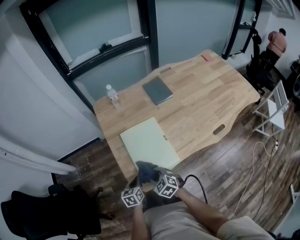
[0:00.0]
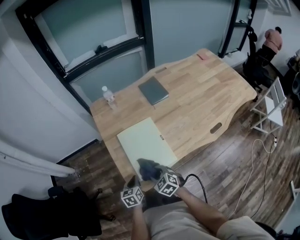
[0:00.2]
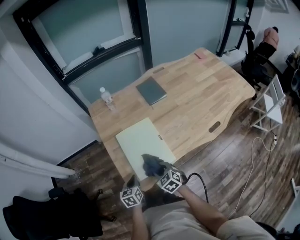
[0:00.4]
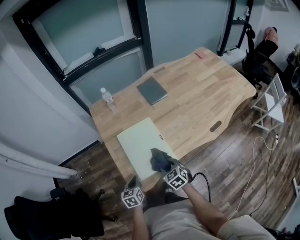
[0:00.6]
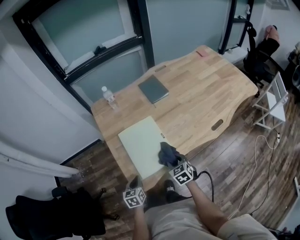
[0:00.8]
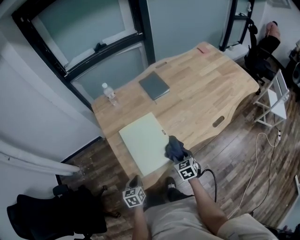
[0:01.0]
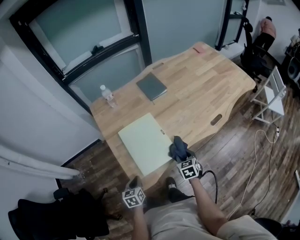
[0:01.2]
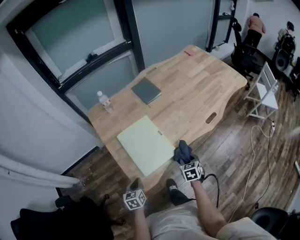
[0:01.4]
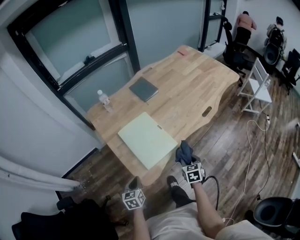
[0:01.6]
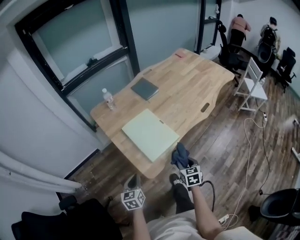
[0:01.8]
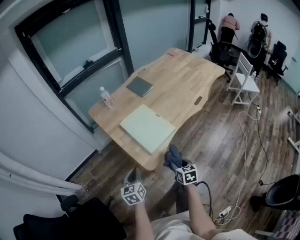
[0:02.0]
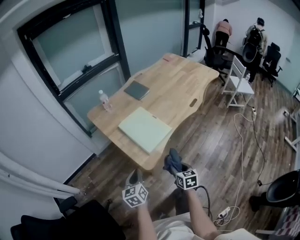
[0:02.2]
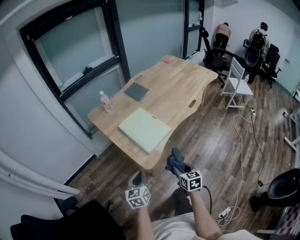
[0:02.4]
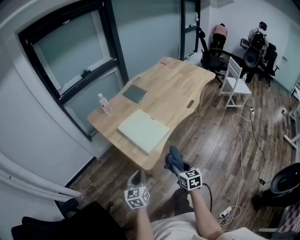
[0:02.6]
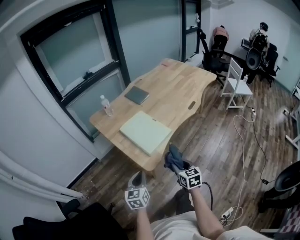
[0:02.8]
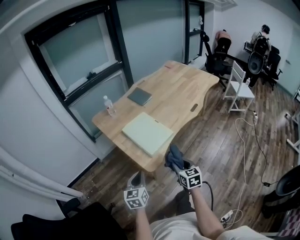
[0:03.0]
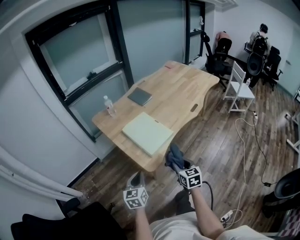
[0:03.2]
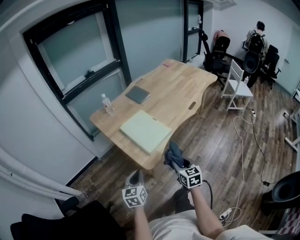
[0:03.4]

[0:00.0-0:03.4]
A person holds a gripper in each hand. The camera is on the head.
0:00.0 to 0:01.6: The left gripper shifts by roughly 10 cm. The right gripper moves about 20 cm, and swivels about 60 degrees.
0:01.6 to 0:03.4: The right gripper moves backward, upward and to the left, some 25 cm, and turns by about 20 degrees; the left gripper goes roughly 15 cm upward and backward.

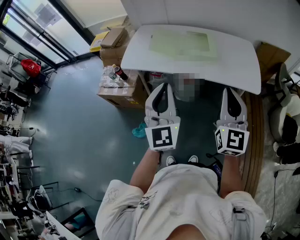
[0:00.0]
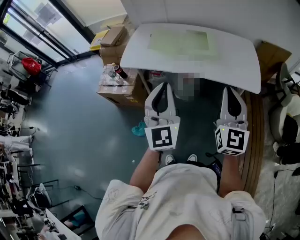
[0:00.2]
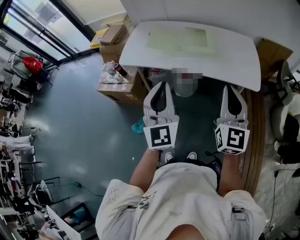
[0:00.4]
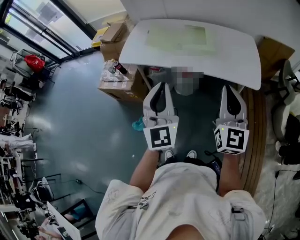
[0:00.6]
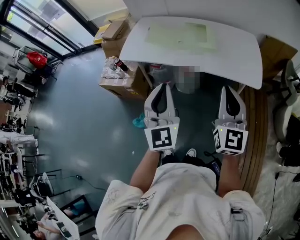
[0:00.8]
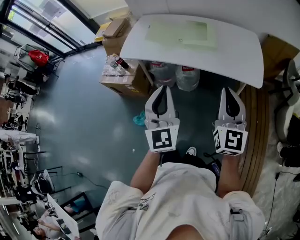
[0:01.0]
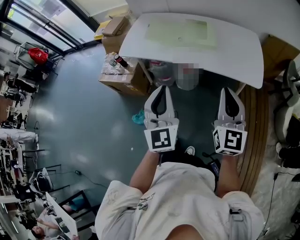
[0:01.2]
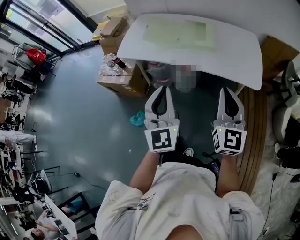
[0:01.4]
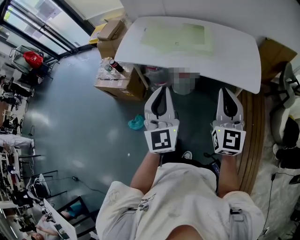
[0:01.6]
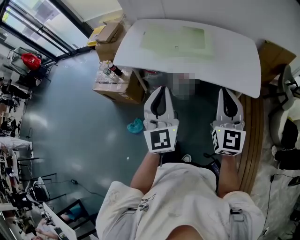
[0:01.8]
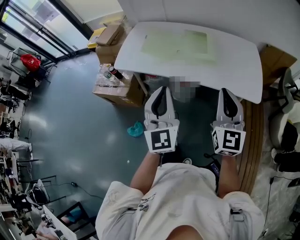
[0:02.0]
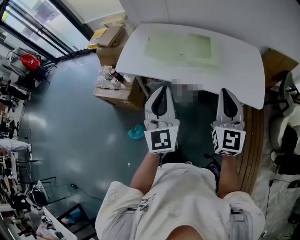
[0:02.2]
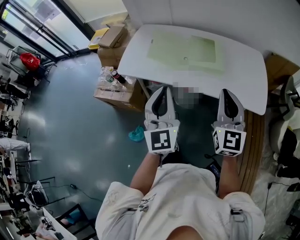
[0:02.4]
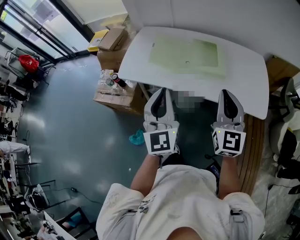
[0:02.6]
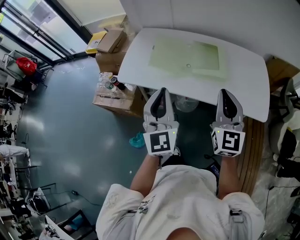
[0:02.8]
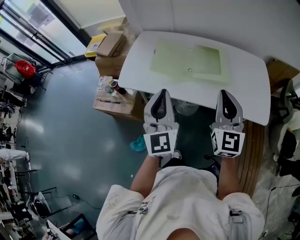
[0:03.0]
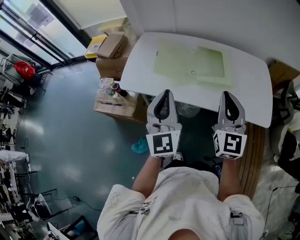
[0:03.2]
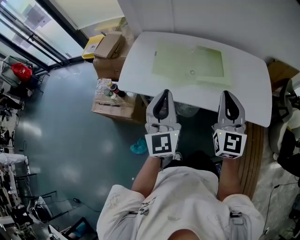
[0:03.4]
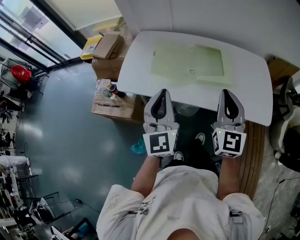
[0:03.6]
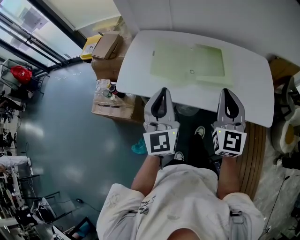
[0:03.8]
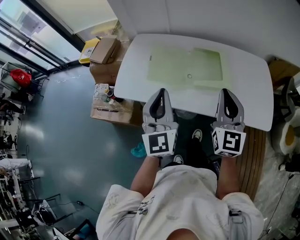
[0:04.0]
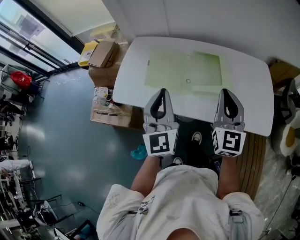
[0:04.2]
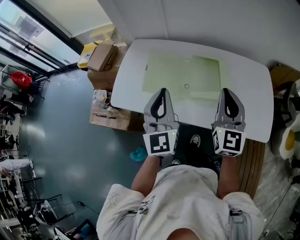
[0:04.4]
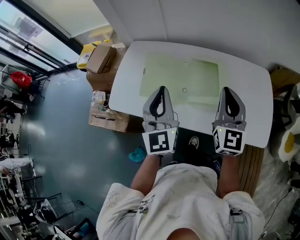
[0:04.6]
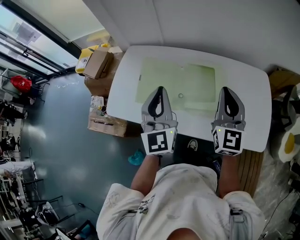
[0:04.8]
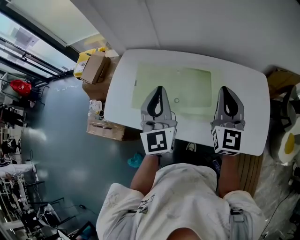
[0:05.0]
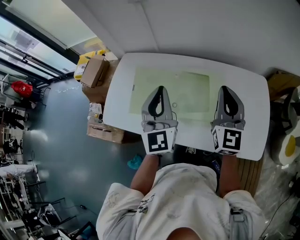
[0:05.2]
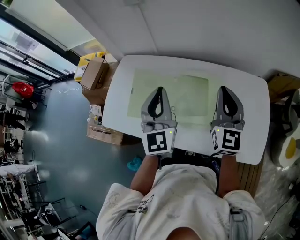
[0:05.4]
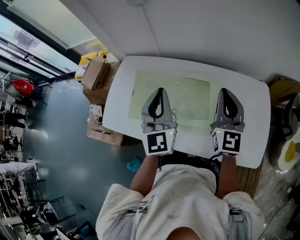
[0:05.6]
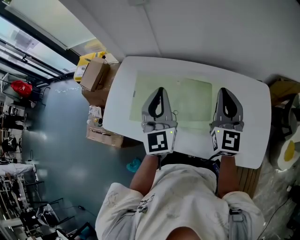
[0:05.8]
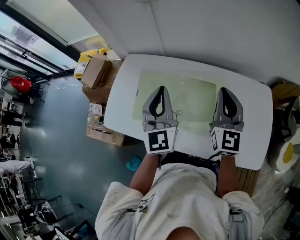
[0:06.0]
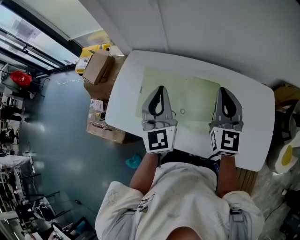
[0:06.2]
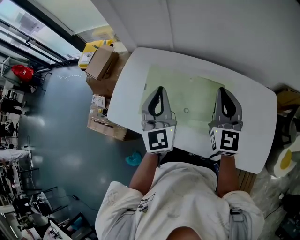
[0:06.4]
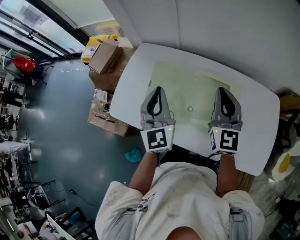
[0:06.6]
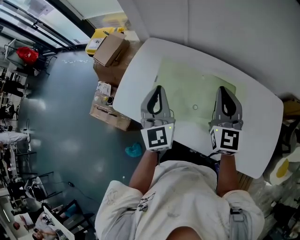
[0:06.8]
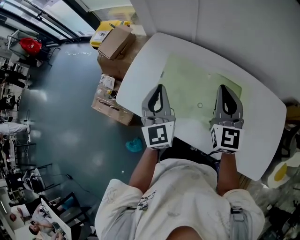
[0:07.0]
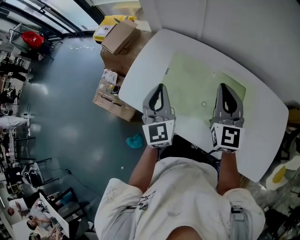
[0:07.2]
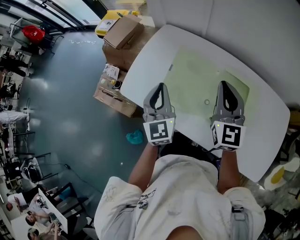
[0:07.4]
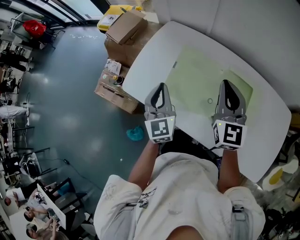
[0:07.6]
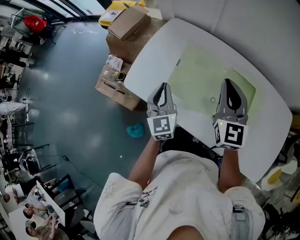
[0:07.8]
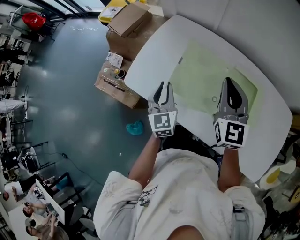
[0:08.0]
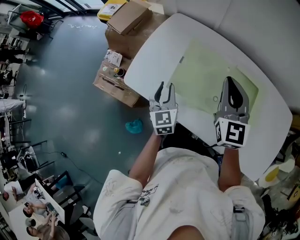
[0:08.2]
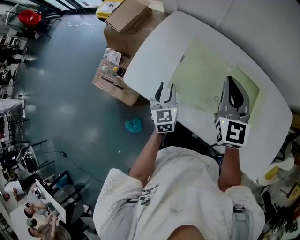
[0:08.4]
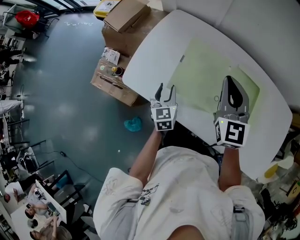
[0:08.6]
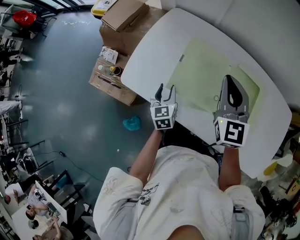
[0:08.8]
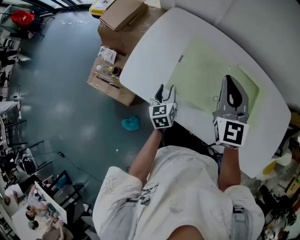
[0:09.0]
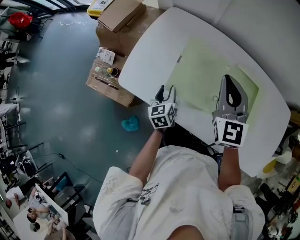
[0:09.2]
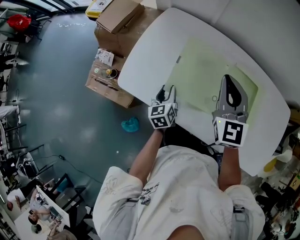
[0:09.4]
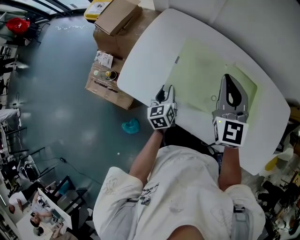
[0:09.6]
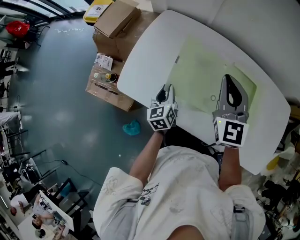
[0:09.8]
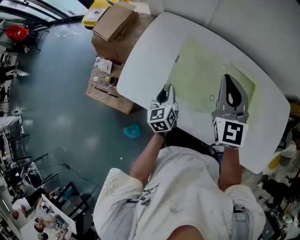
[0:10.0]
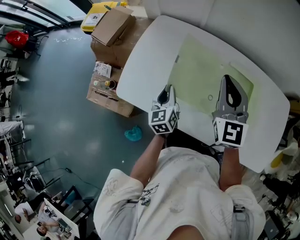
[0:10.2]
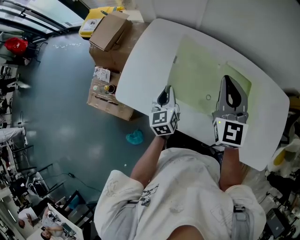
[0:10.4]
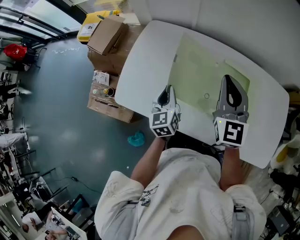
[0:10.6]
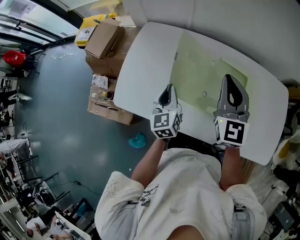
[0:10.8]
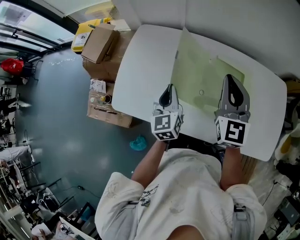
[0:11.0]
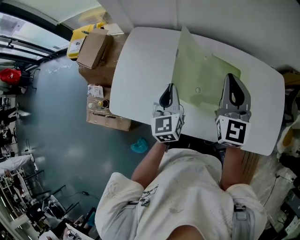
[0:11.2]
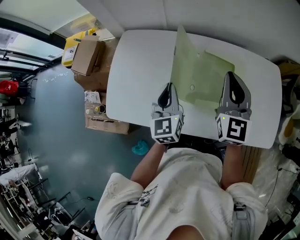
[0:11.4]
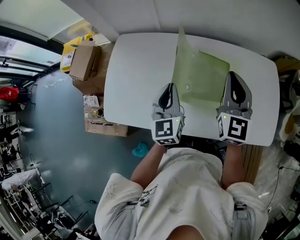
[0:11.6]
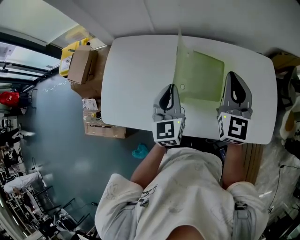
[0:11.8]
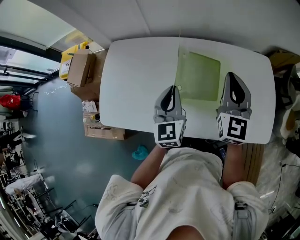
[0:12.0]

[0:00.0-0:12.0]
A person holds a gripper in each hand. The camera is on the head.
0:00.0 to 0:01.6: The grippers both shift to the right by roughly 5 cm.
0:01.6 to 0:03.0: The two grippers go approximately 25 cm forward and to the left.
0:03.0 to 0:04.4: The grippers both shift forward by roughly 15 cm.
0:04.4 to 0:06.0: The grippers both shift forward by approximately 15 cm.
0:06.0 to 0:07.6: The right gripper moves to the left, approximately 20 cm; the left gripper goes roughly 25 cm to the left and downward, and changes its angle by some 20 degrees.
0:07.6 to 0:09.0: The left gripper heads downward, covering roughly 20 cm, turns by roughly 30 degrees, and opens its fingers; the right gripper ends up some 5 cm from where it was.
0:09.0 to 0:10.4: The left gripper travels upward by roughly 10 cm, and closes its fingers. The right gripper shifts by about 5 cm.
0:10.4 to 0:12.0: The left gripper goes approximately 25 cm to the right and upward, and swivels roughly 30 degrees; the right gripper heads to the right, covering about 20 cm, and rotates some 20 degrees.

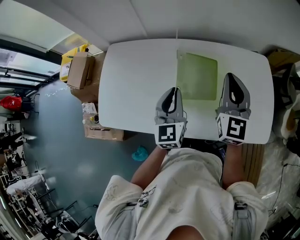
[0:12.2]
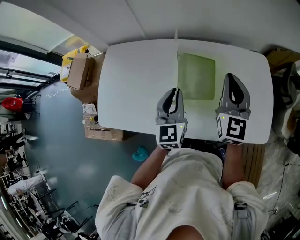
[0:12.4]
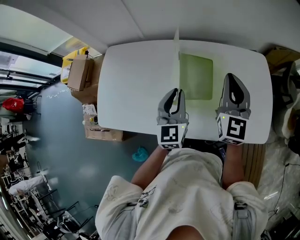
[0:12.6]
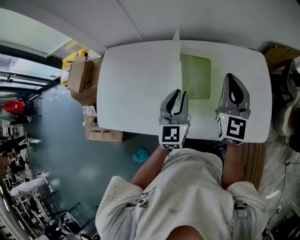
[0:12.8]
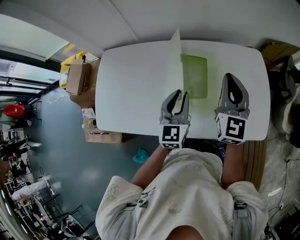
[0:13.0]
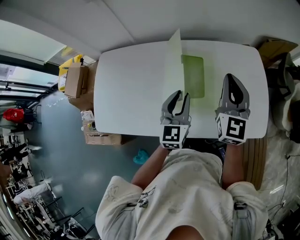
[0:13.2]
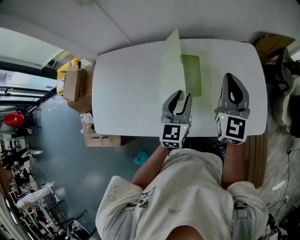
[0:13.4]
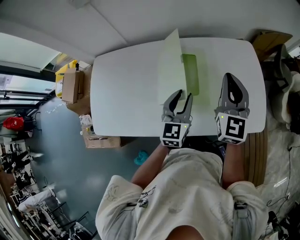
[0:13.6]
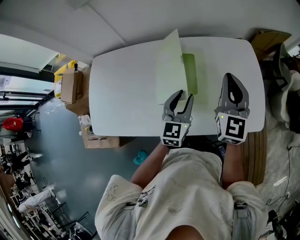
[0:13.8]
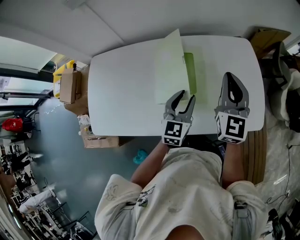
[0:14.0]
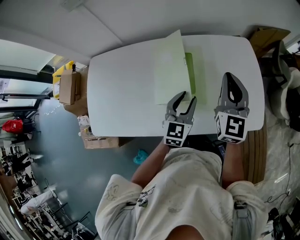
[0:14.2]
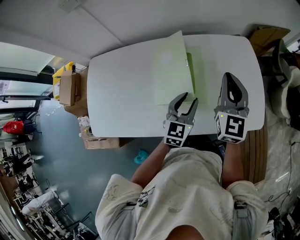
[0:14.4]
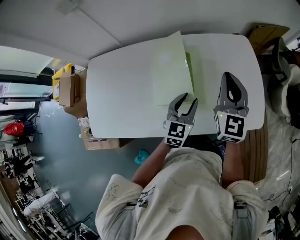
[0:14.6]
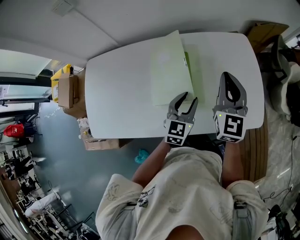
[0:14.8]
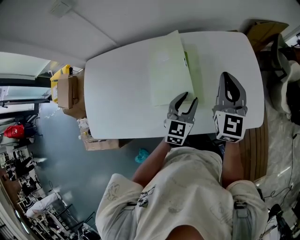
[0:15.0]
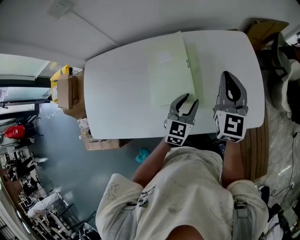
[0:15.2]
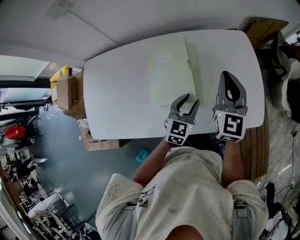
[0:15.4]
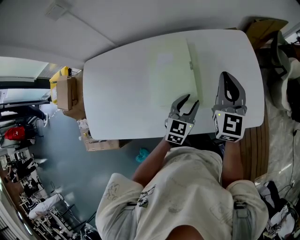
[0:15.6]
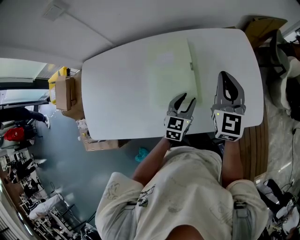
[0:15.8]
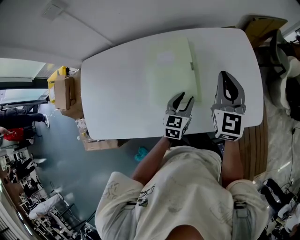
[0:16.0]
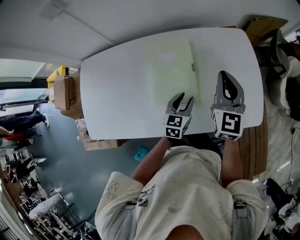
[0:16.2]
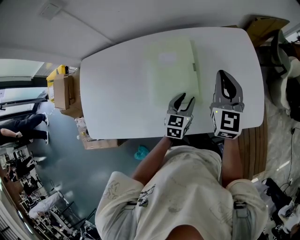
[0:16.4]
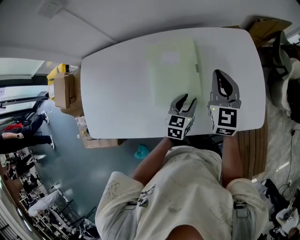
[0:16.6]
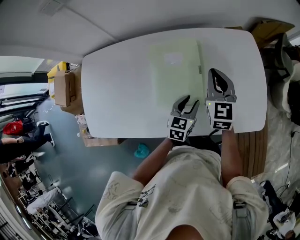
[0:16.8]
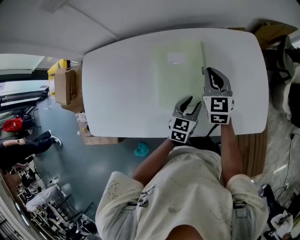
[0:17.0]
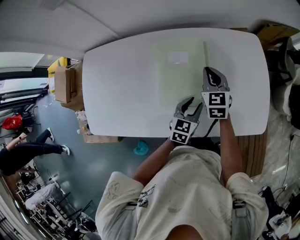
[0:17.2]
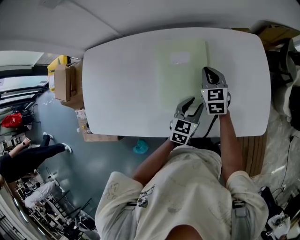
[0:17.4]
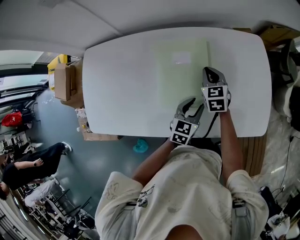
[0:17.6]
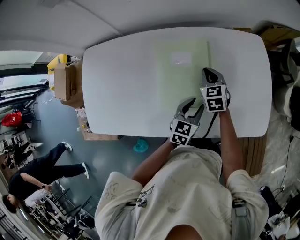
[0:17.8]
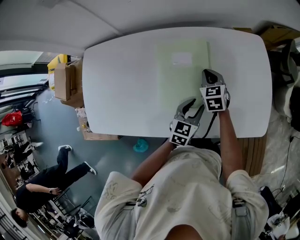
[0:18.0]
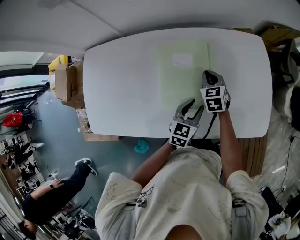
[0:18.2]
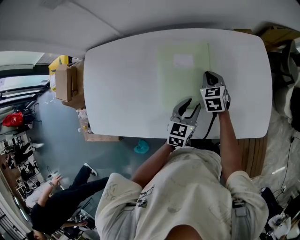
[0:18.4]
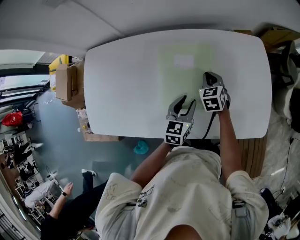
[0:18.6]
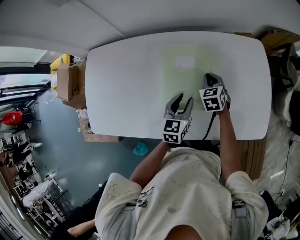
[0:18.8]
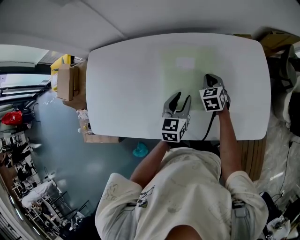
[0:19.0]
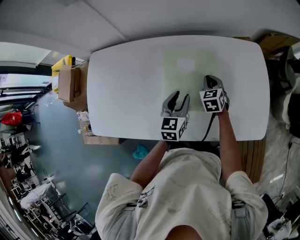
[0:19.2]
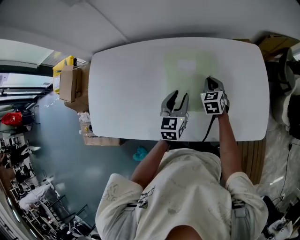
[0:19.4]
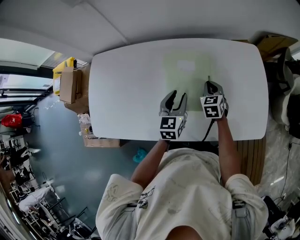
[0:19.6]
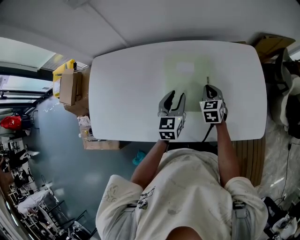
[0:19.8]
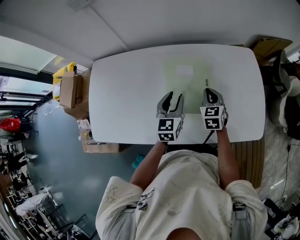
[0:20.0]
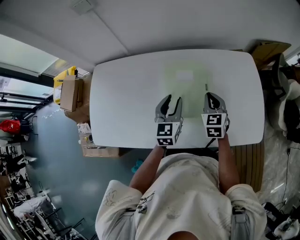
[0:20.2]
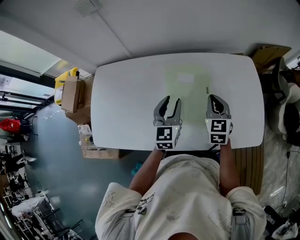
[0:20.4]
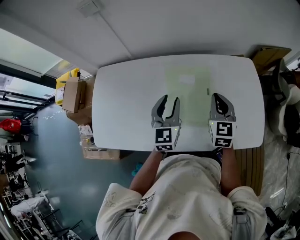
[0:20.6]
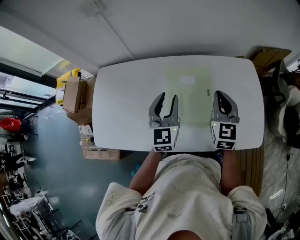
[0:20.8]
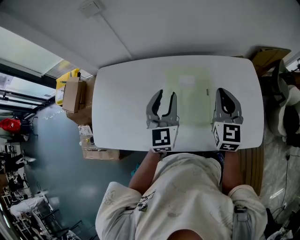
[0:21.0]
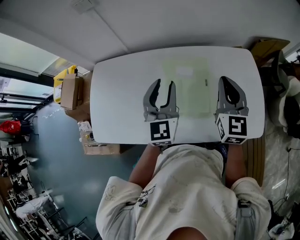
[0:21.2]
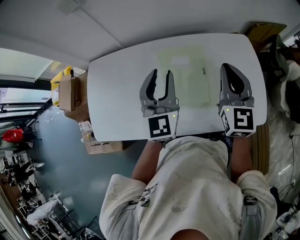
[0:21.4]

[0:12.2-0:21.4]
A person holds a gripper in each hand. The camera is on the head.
0:12.2 to 0:13.8: The two grippers go roughly 15 cm to the right. The left gripper changes its angle by about 20 degrees, and opens up.
0:13.8 to 0:15.2: The left gripper heads downward and to the right, covering roughly 10 cm.
0:15.2 to 0:16.8: The right gripper shifts some 10 cm downward and to the left. Meanwhile the left gripper goes roughly 5 cm downward.
0:16.8 to 0:18.4: The right gripper heads downward, covering approximately 15 cm, and turns by some 30 degrees.
0:18.4 to 0:19.8: The right gripper ends up about 5 cm from where it was. Meanwhile the left gripper moves to the left and upward, some 10 cm.
0:19.8 to 0:21.4: Both grippers move upward, some 20 cm. The right gripper angles its fingers upward, by roughly 30 degrees. The left gripper swivels roughly 20 degrees.
